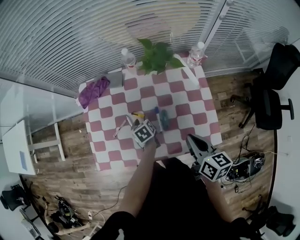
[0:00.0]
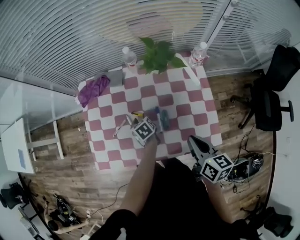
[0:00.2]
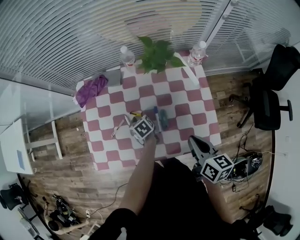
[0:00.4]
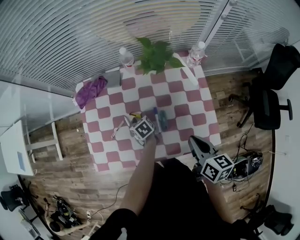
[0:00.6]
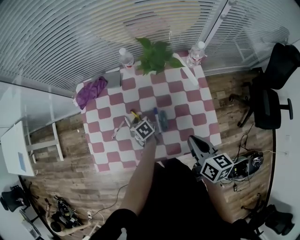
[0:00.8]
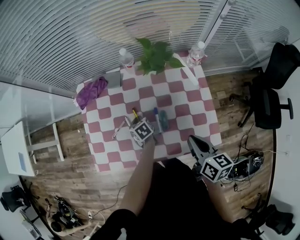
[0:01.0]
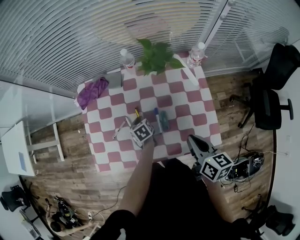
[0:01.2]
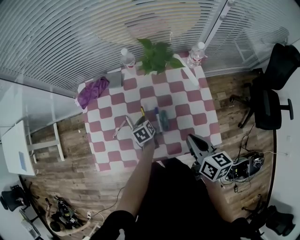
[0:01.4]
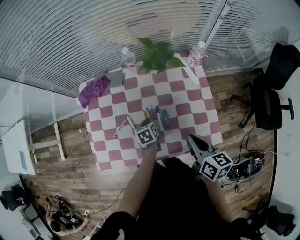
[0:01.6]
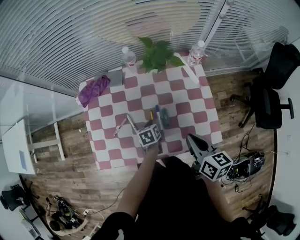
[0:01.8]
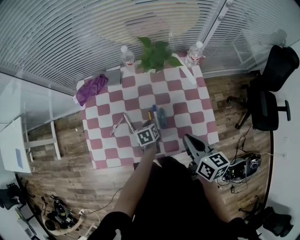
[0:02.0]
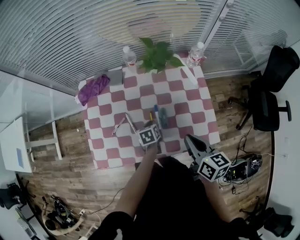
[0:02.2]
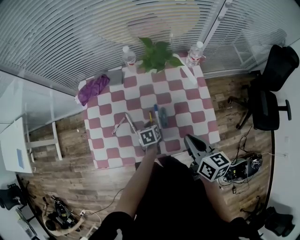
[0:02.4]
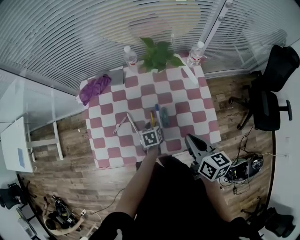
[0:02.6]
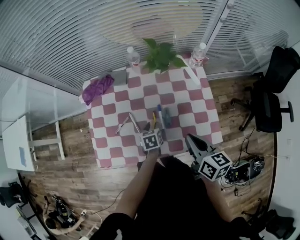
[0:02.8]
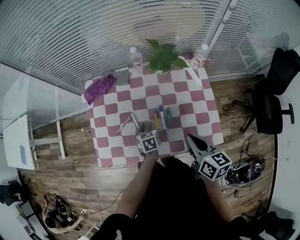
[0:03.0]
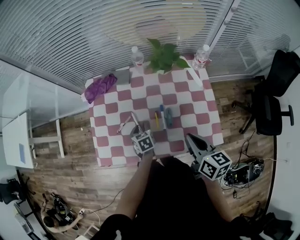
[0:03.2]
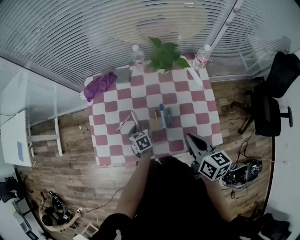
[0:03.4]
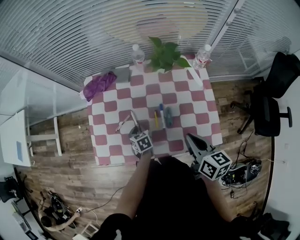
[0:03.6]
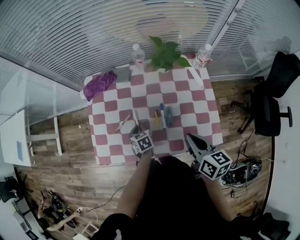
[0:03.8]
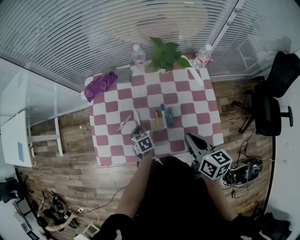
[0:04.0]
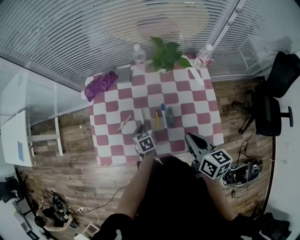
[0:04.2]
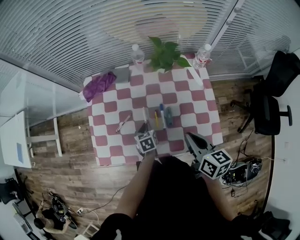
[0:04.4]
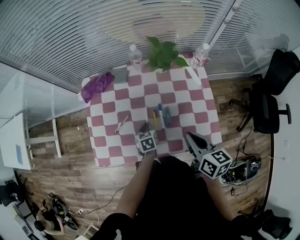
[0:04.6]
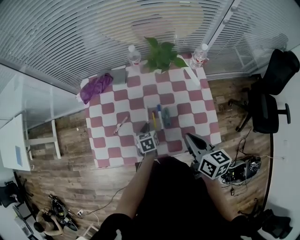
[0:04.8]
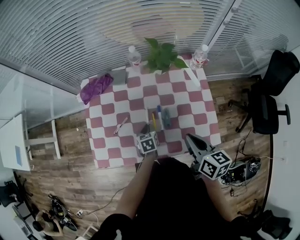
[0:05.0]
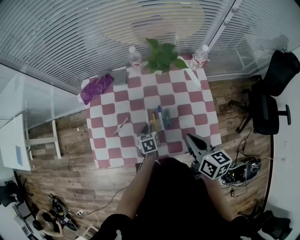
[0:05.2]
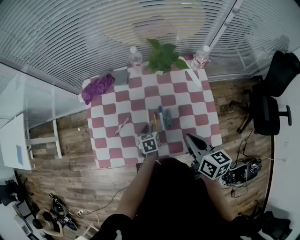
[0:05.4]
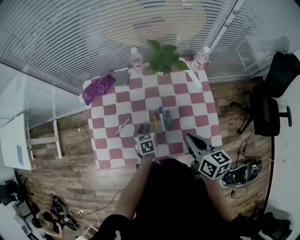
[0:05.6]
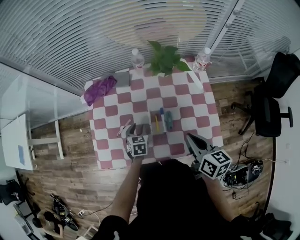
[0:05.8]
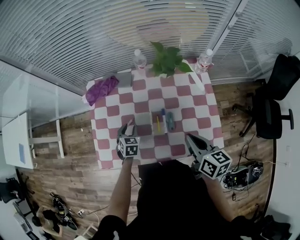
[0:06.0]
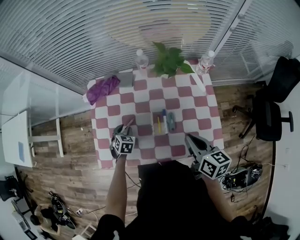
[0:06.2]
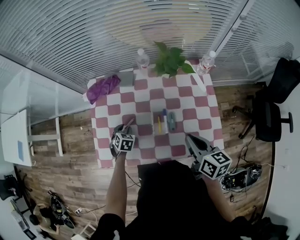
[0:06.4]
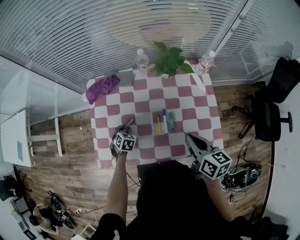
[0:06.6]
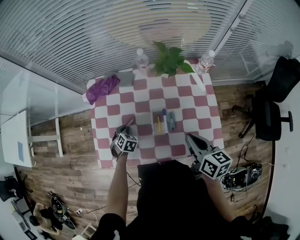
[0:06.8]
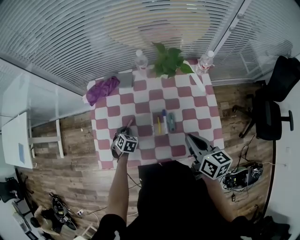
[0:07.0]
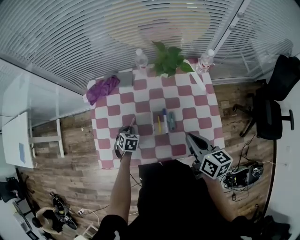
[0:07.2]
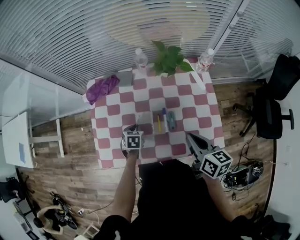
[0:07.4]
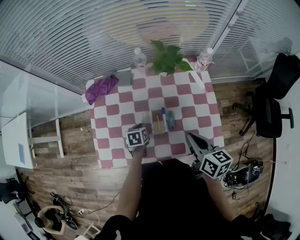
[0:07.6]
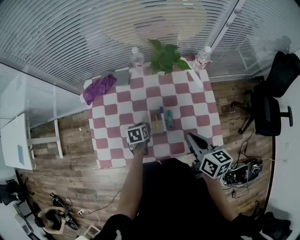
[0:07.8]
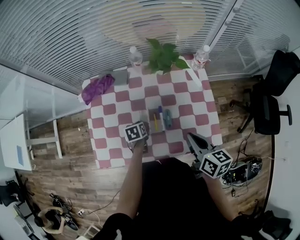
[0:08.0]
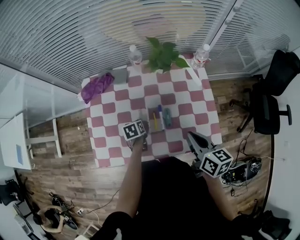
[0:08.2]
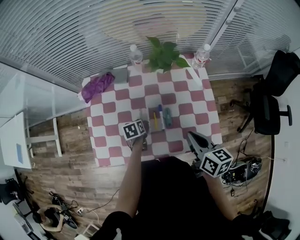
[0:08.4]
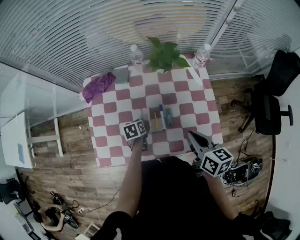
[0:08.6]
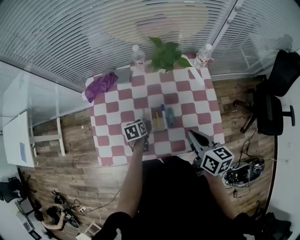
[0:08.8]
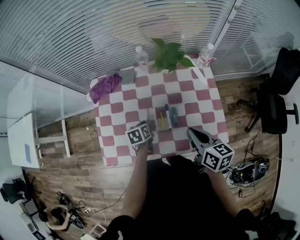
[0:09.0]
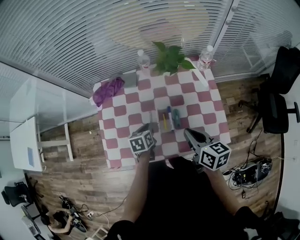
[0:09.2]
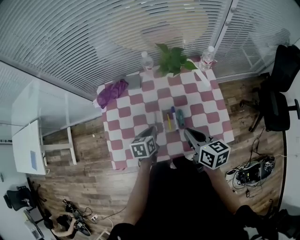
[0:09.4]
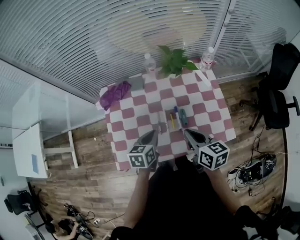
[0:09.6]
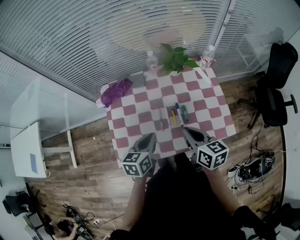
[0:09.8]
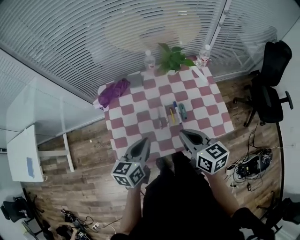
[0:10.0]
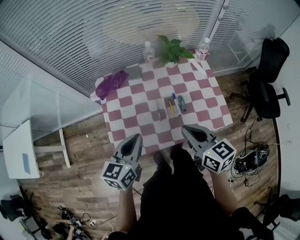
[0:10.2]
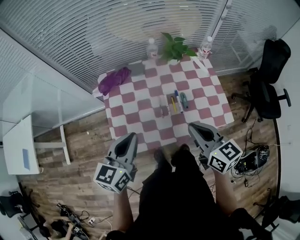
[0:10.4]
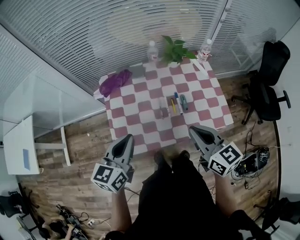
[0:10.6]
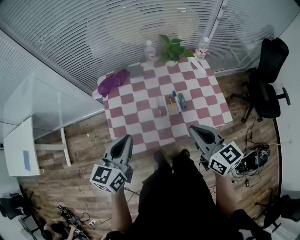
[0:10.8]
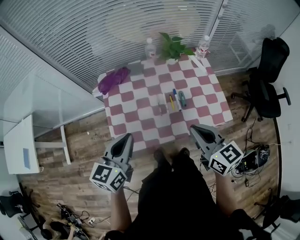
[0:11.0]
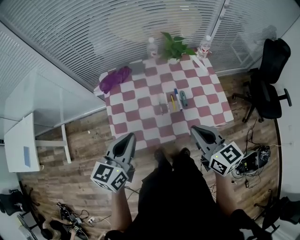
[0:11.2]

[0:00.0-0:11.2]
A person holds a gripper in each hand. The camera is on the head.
0:00.0 to 0:01.6: The left gripper closes up.
0:01.6 to 0:03.2: The left gripper shifts approximately 5 cm to the left, and opens its fingers.
0:03.2 to 0:04.8: The left gripper is displaced to the right by some 5 cm, and closes.
0:04.8 to 0:06.4: The left gripper goes some 15 cm to the left, changes its angle by about 30 degrees, and opens.
0:06.4 to 0:08.0: The left gripper travels to the right by about 10 cm, changes its angle by approximately 40 degrees, and closes.
0:08.0 to 0:09.6: The right gripper heads to the left, covering about 10 cm, while the left gripper is displaced upward by roughly 15 cm, and changes its angle by roughly 30 degrees.
0:09.6 to 0:11.2: The right gripper goes approximately 15 cm backward and upward, while the left gripper travels upward, backward and to the left by roughly 25 cm, and turns by roughly 30 degrees.

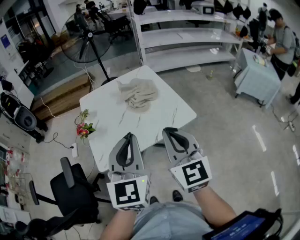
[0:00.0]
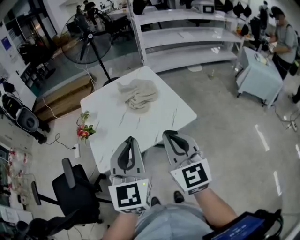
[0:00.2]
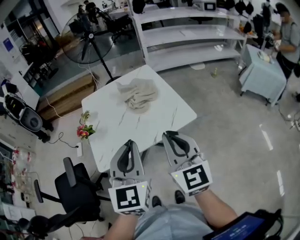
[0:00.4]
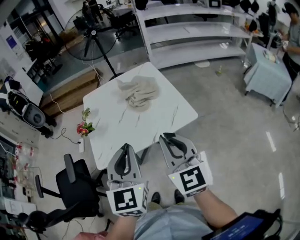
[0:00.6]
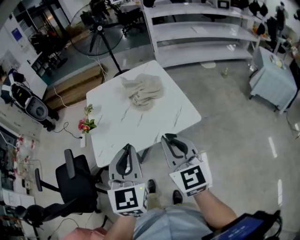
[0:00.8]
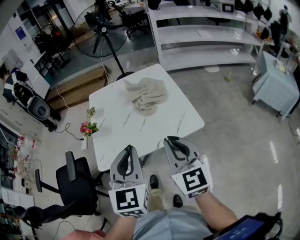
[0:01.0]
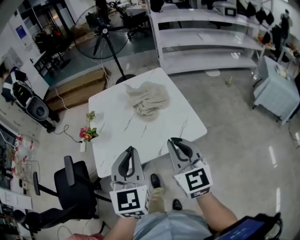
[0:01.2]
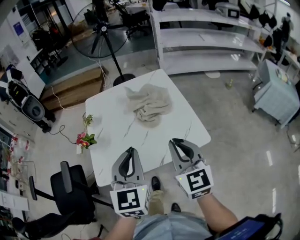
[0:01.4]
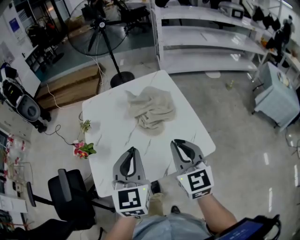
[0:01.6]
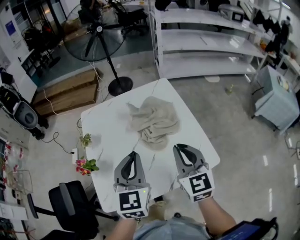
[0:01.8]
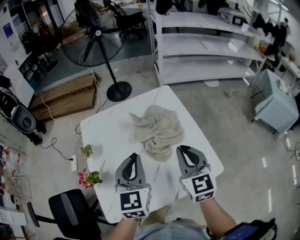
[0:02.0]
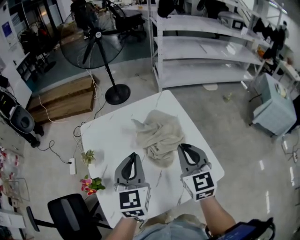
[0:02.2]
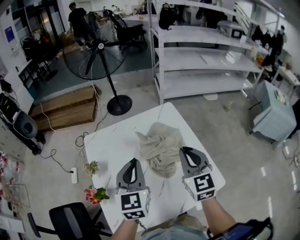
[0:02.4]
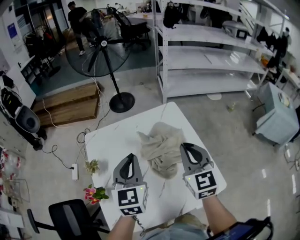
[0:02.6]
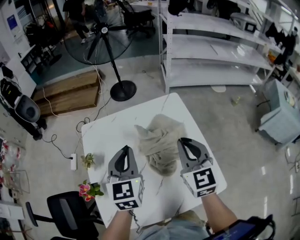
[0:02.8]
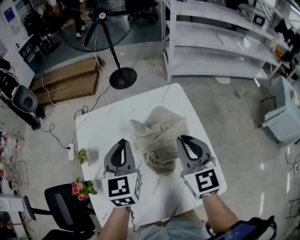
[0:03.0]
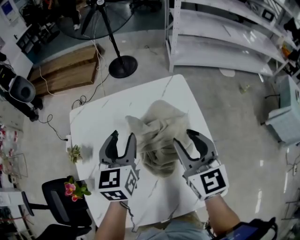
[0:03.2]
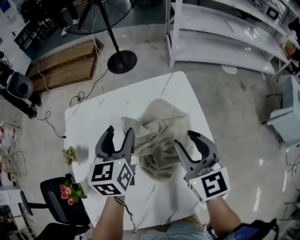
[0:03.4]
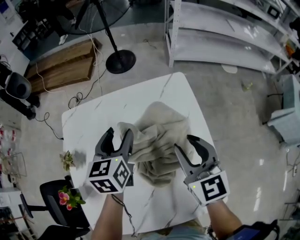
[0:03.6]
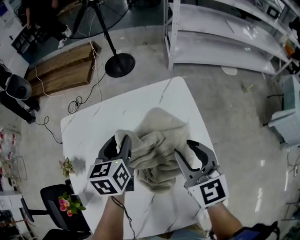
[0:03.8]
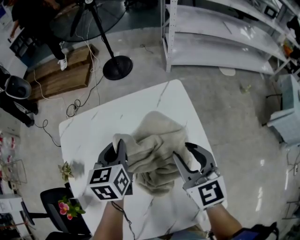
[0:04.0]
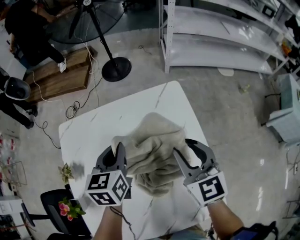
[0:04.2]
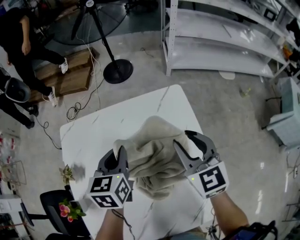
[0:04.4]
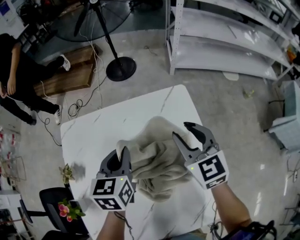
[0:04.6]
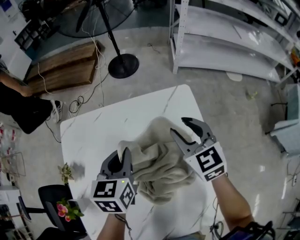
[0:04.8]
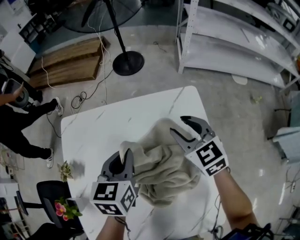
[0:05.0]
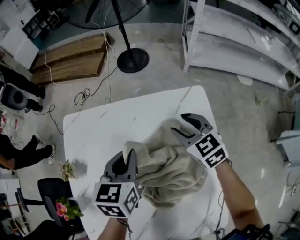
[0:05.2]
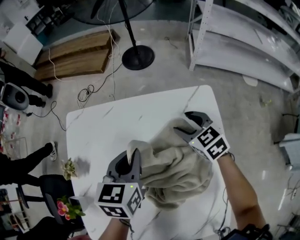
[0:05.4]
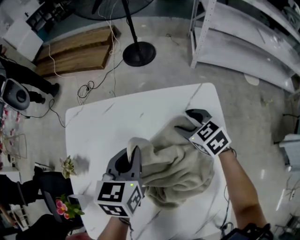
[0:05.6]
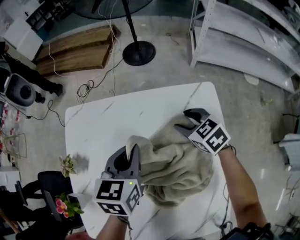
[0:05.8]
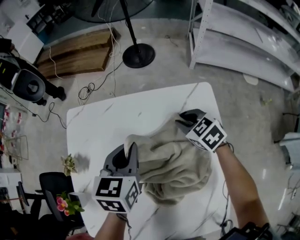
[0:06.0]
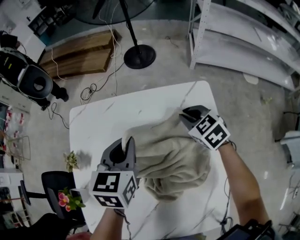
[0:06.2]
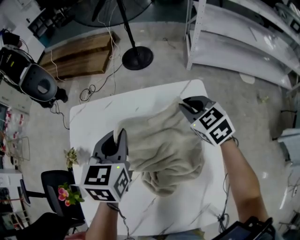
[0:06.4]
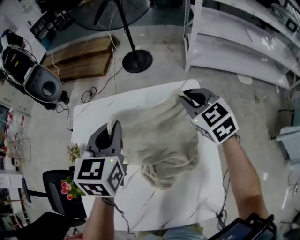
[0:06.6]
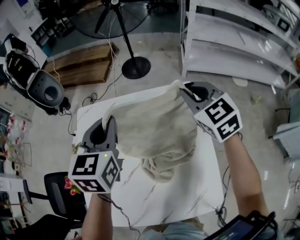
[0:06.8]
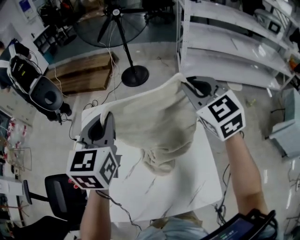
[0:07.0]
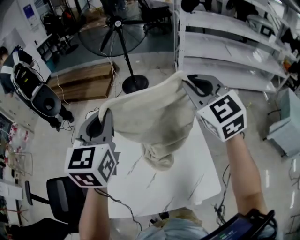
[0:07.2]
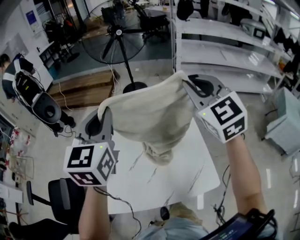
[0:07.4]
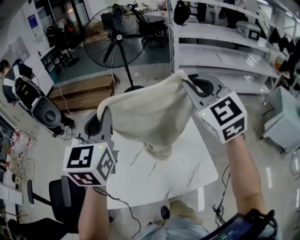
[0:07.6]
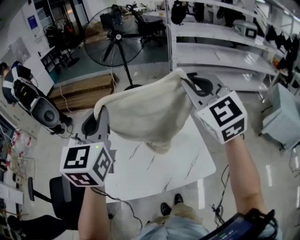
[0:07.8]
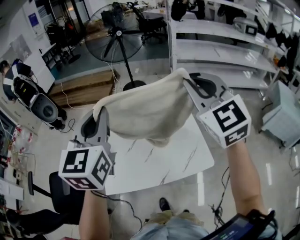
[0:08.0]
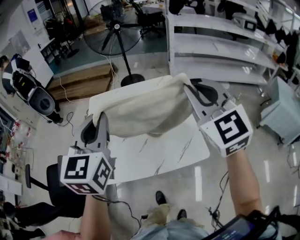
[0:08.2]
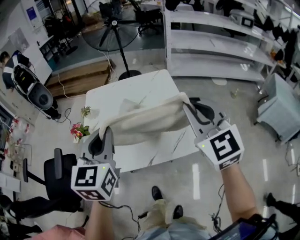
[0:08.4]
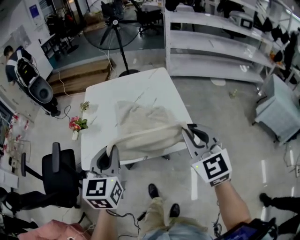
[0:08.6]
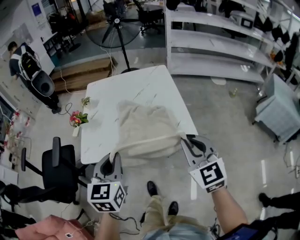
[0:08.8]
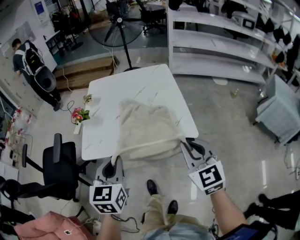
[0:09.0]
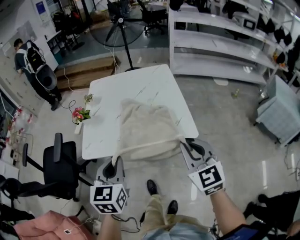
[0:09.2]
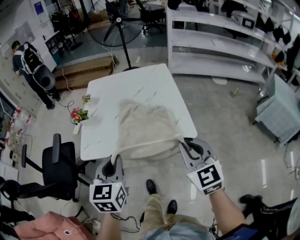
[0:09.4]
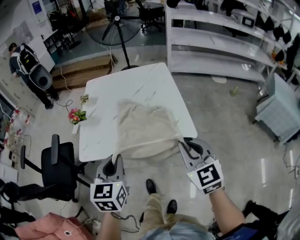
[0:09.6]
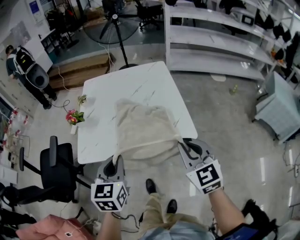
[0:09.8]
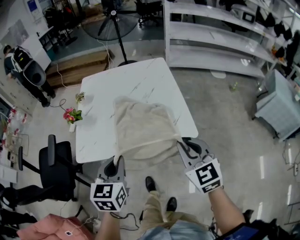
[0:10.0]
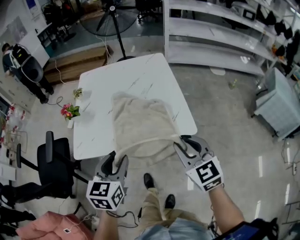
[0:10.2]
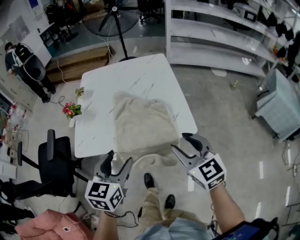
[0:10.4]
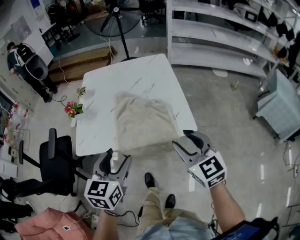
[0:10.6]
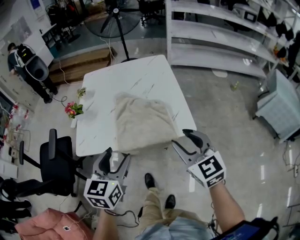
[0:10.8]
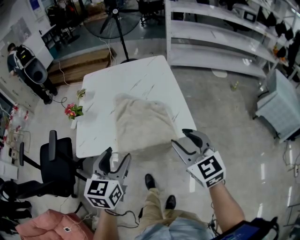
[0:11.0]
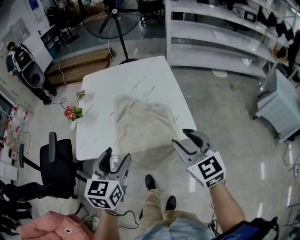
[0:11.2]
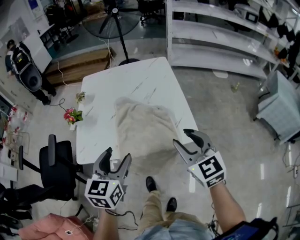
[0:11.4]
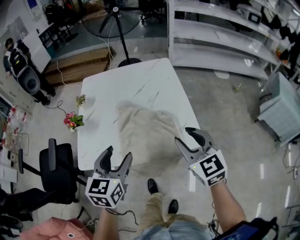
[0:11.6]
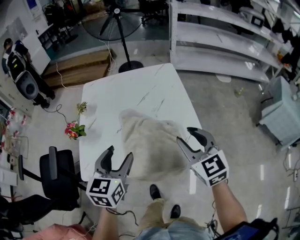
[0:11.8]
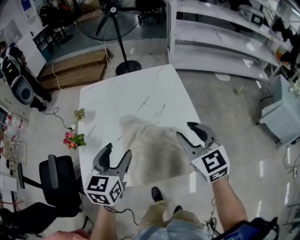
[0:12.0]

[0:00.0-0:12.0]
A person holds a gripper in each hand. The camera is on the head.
0:00.0 to 0:01.6: Both grippers move forward and downward, roughly 20 cm.
0:01.6 to 0:03.0: The grippers both shift forward by approximately 25 cm.
0:03.0 to 0:04.4: The right gripper moves forward and downward, about 15 cm, and opens up, while the left gripper shifts some 15 cm downward and forward, and opens and closes again.
0:04.4 to 0:06.0: The right gripper heads downward and forward, covering some 20 cm, and swivels some 40 degrees.
0:06.0 to 0:07.6: Both grippers travel together upward and backward, about 50 cm. The left gripper tips its fingers upward by some 30 degrees; the right gripper points its fingers approximately 40 degrees further upward.
0:07.6 to 0:09.0: Both grippers travel together backward and downward, roughly 40 cm. The left gripper rotates roughly 20 degrees.
0:09.0 to 0:10.4: The right gripper opens. The left gripper moves about 5 cm, and opens its fingers.
0:10.4 to 0:12.0: The grippers both shift forward by about 20 cm.
